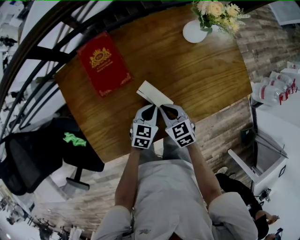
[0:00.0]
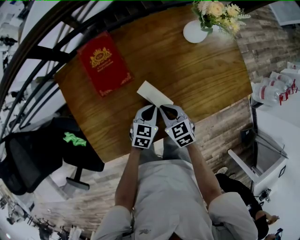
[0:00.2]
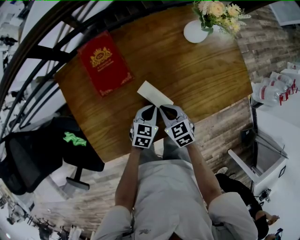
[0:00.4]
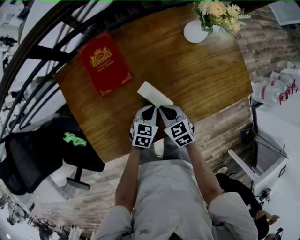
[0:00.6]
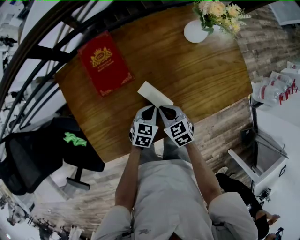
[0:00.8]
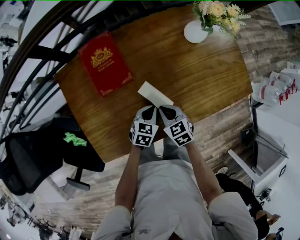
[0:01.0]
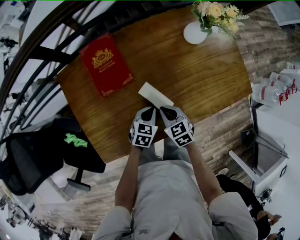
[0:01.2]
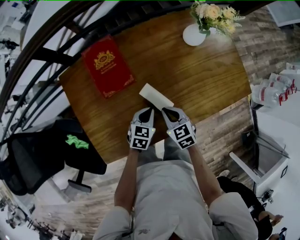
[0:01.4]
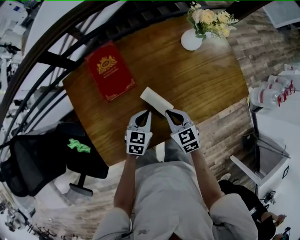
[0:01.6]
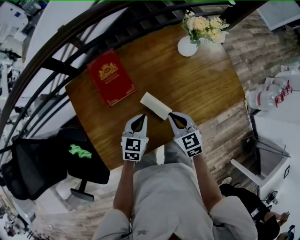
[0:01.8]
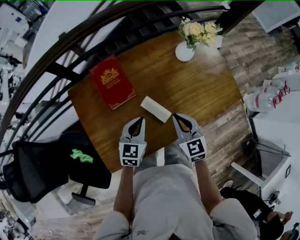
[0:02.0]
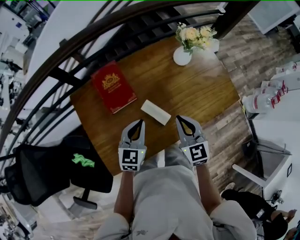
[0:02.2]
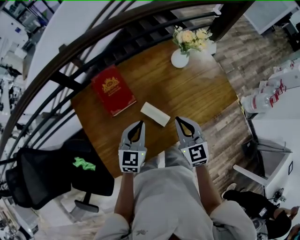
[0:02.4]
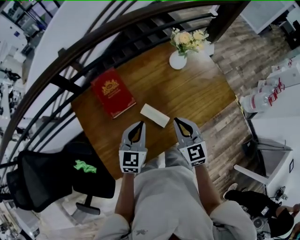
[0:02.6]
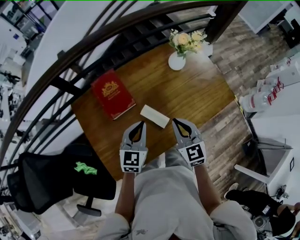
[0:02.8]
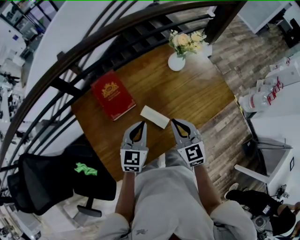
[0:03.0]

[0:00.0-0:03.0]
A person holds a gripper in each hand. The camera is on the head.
0:00.0 to 0:01.6: The left gripper changes place by approximately 5 cm.
0:01.6 to 0:03.0: Both grippers travel together upward, approximately 15 cm. The left gripper turns by roughly 20 degrees, while the right gripper changes its angle by approximately 20 degrees.

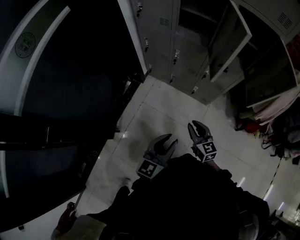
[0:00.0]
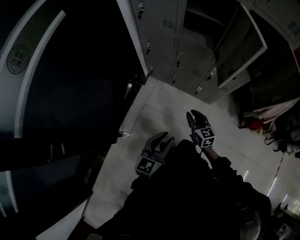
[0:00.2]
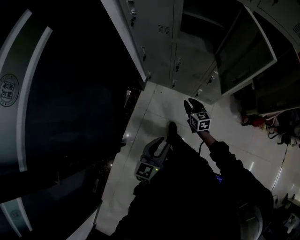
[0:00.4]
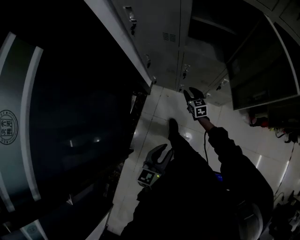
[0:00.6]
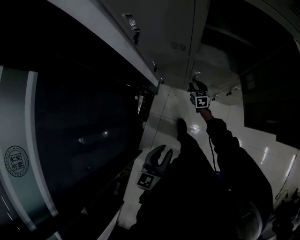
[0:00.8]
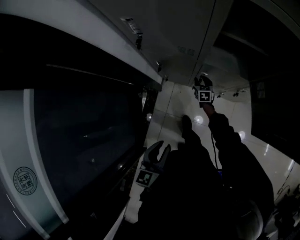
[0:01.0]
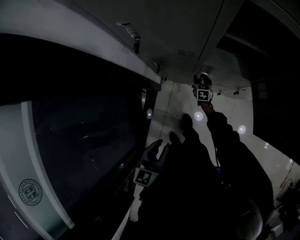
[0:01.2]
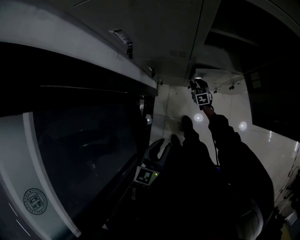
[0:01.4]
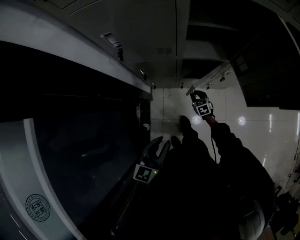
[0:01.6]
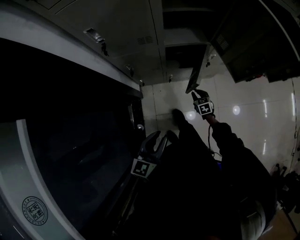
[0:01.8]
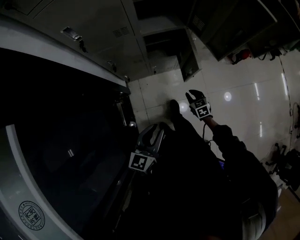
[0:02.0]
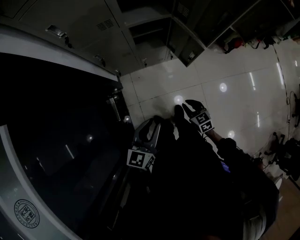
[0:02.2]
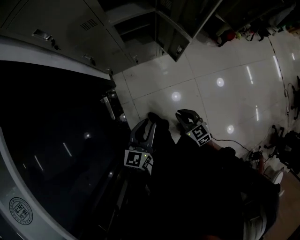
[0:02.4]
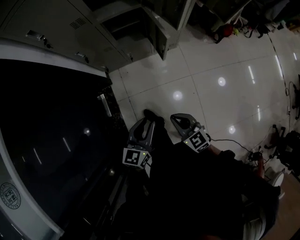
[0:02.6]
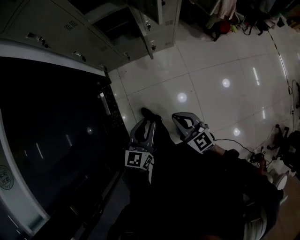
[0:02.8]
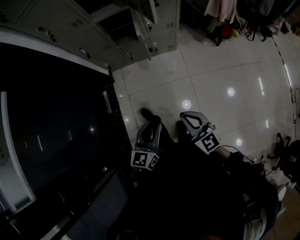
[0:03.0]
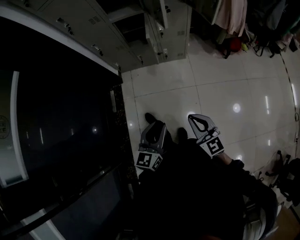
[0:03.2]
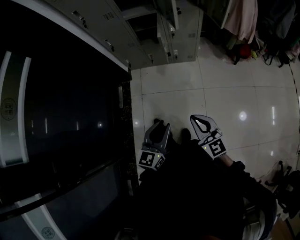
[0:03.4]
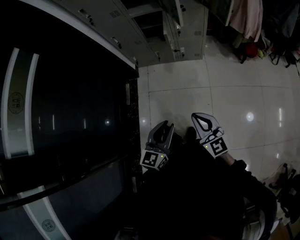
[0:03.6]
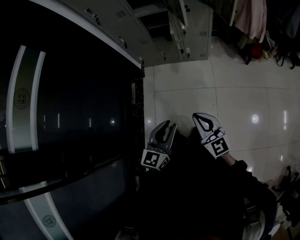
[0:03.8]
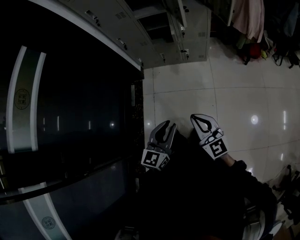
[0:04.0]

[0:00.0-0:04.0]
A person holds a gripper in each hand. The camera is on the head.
0:00.0 to 0:01.4: The pair of grippers is taken forward and to the left, approximately 50 cm. The right gripper goes some 25 cm downward, and changes its angle by roughly 40 degrees.
0:01.4 to 0:02.6: The left gripper goes approximately 30 cm backward and to the right, and rotates about 20 degrees; the right gripper goes approximately 60 cm backward and upward, rotates some 20 degrees, and closes its fingers.
0:02.6 to 0:04.0: The left gripper moves backward and to the right, approximately 25 cm; the right gripper moves backward, upward and to the right, approximately 25 cm, and turns by approximately 30 degrees.

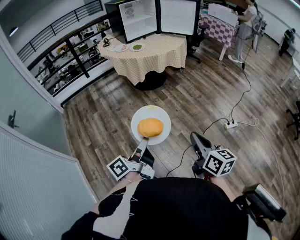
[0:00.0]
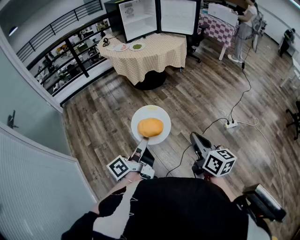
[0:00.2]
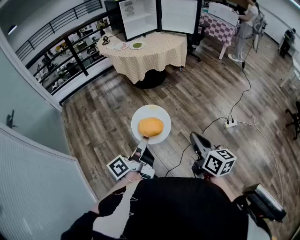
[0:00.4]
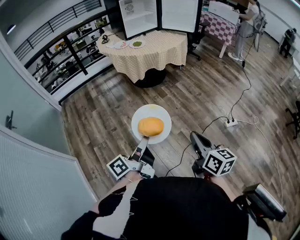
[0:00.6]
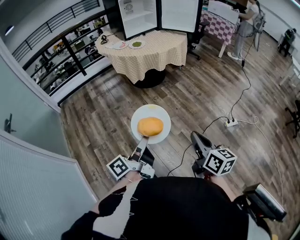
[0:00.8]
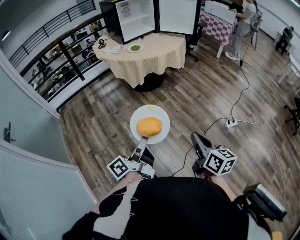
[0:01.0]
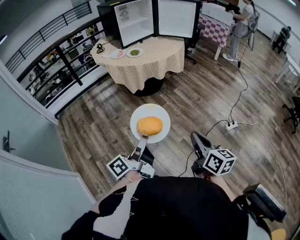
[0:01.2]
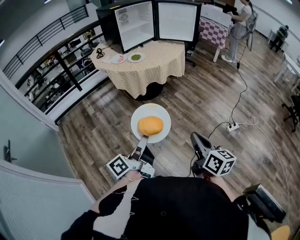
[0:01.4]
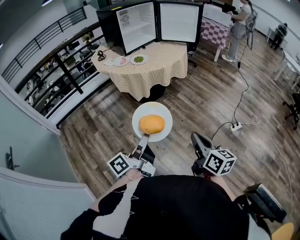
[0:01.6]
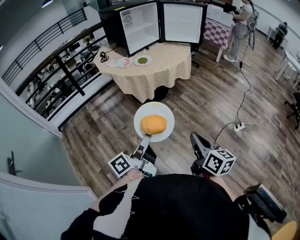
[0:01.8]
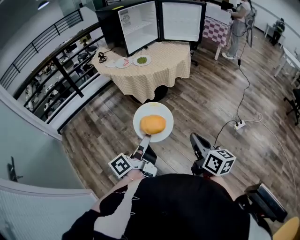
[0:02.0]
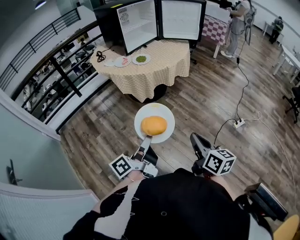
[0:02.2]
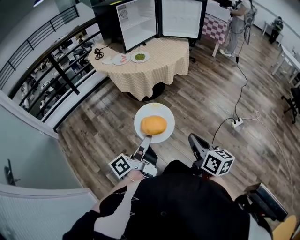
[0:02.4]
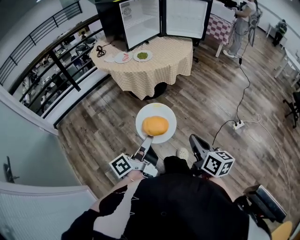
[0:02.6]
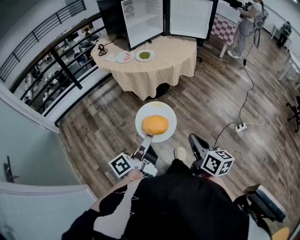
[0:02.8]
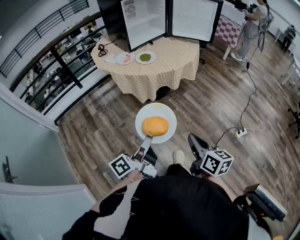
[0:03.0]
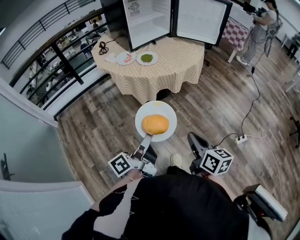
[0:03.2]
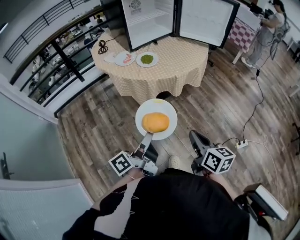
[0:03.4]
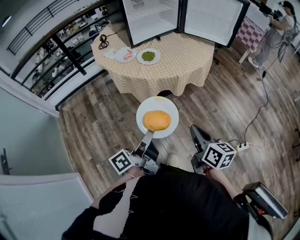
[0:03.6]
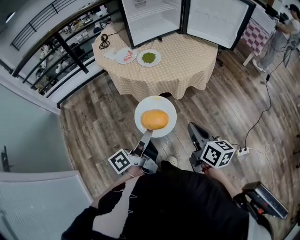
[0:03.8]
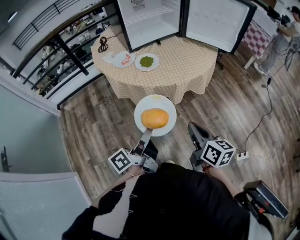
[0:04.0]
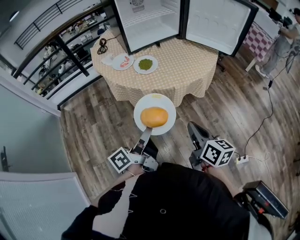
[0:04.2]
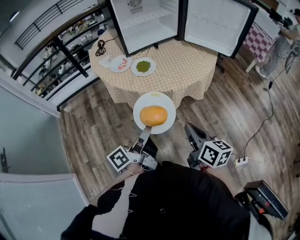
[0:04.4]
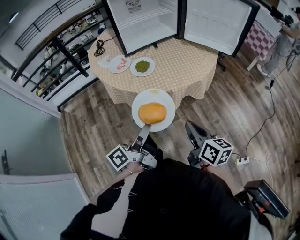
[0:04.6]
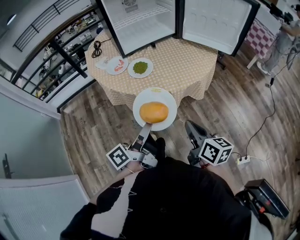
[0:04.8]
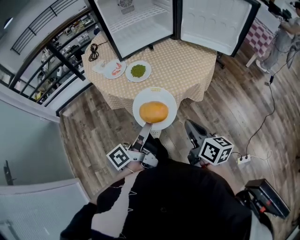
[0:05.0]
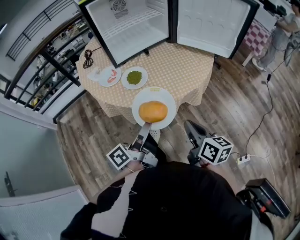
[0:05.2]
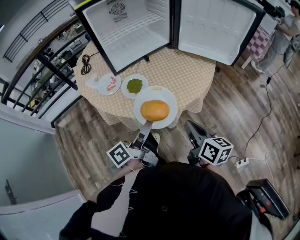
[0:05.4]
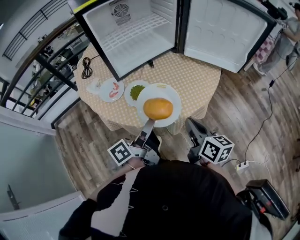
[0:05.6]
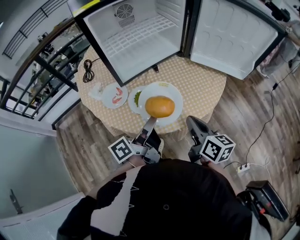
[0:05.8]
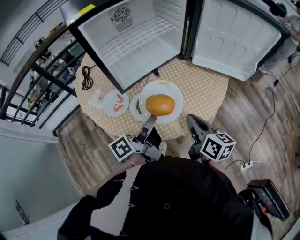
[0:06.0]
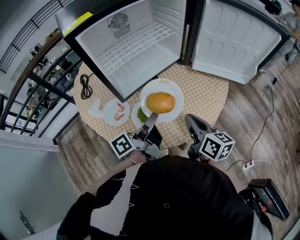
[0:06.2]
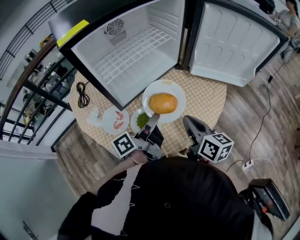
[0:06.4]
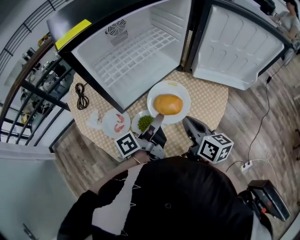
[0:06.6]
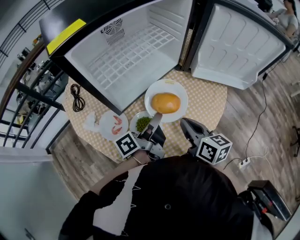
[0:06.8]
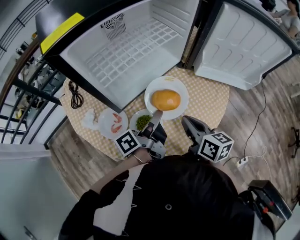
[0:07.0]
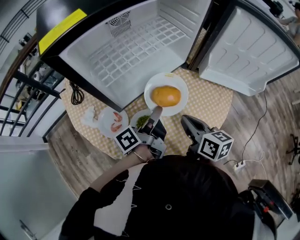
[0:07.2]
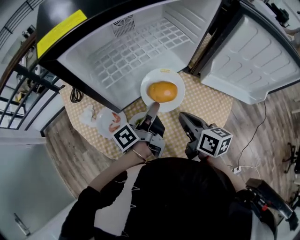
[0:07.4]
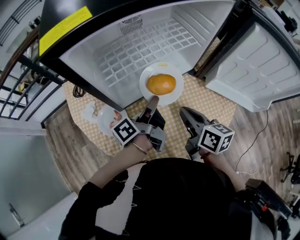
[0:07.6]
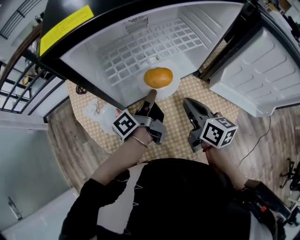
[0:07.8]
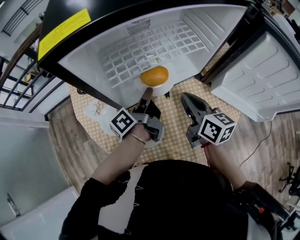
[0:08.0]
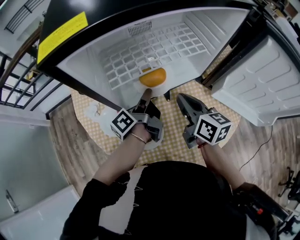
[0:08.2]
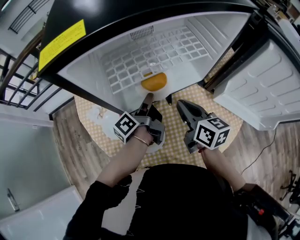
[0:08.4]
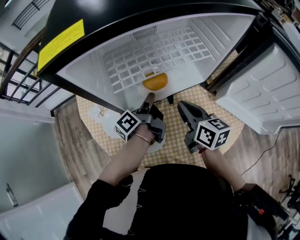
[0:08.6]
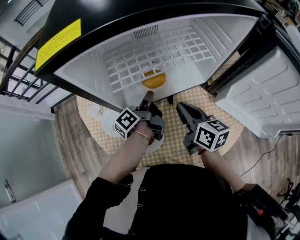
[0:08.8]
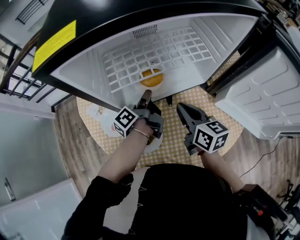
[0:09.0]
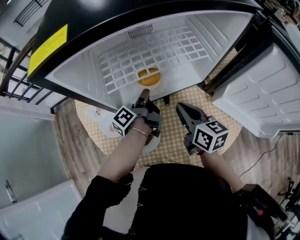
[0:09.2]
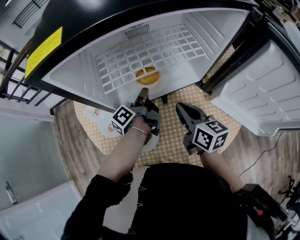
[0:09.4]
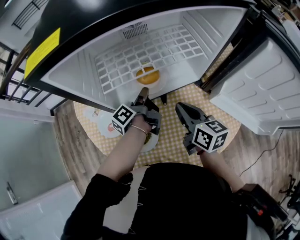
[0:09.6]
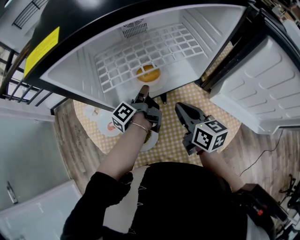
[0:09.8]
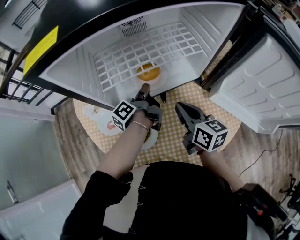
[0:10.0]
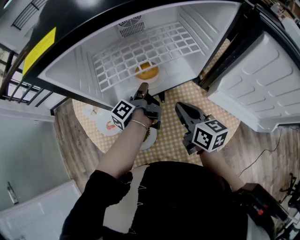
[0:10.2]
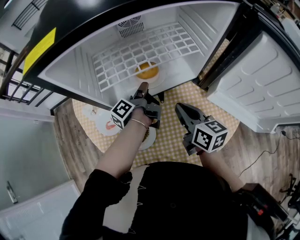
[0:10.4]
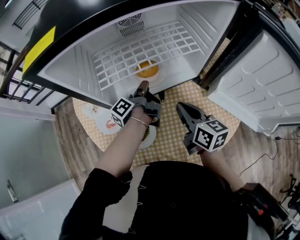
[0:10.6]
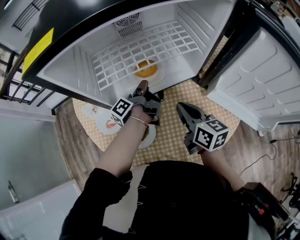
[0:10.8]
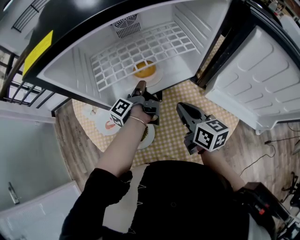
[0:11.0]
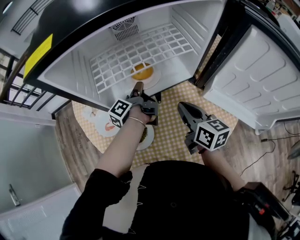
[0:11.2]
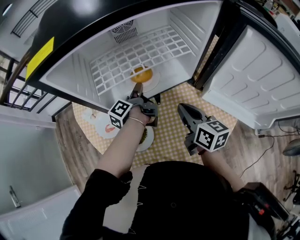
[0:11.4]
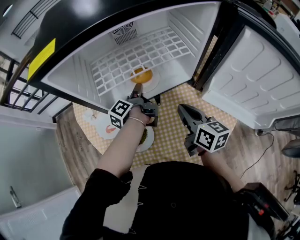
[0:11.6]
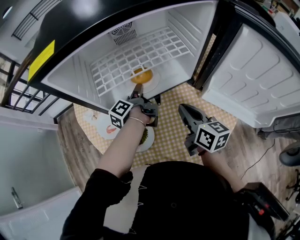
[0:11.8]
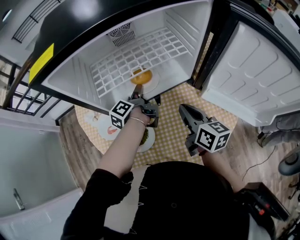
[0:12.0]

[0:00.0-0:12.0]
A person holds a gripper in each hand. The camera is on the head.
0:00.0 to 0:01.6: The right gripper ends up approximately 20 cm from where it was.
0:01.6 to 0:03.0: The right gripper moves some 15 cm.
0:03.0 to 0:04.4: The right gripper moves approximately 30 cm.
0:04.4 to 0:06.0: The right gripper ends up roughly 30 cm from where it was.
0:06.0 to 0:07.6: The right gripper ends up roughly 20 cm from where it was.
0:07.6 to 0:09.0: The right gripper shifts by roughly 5 cm.

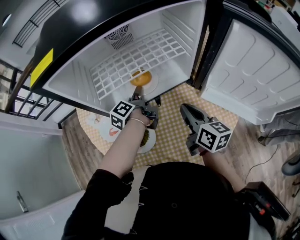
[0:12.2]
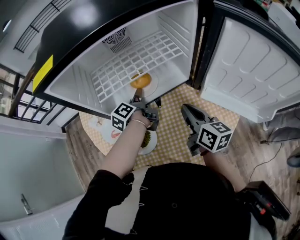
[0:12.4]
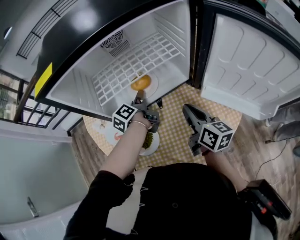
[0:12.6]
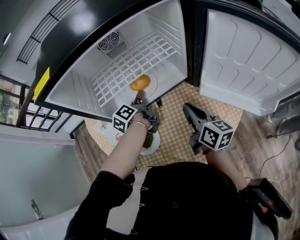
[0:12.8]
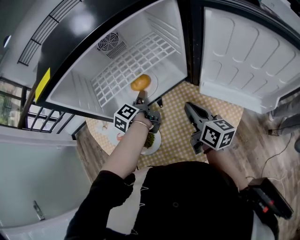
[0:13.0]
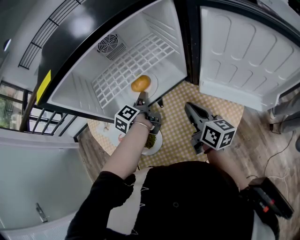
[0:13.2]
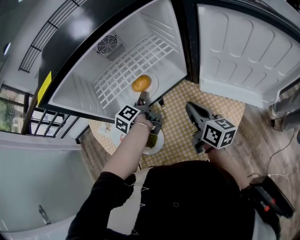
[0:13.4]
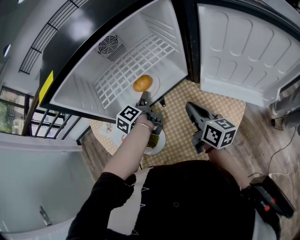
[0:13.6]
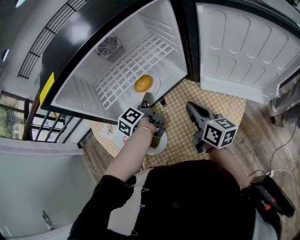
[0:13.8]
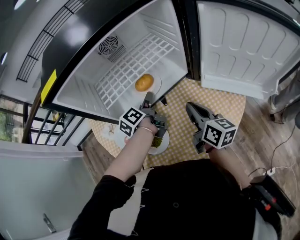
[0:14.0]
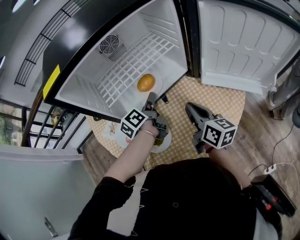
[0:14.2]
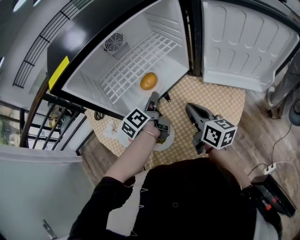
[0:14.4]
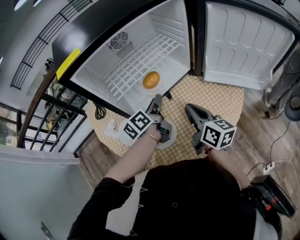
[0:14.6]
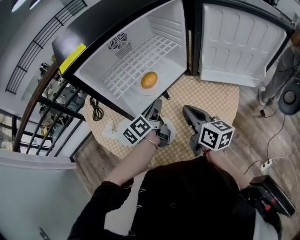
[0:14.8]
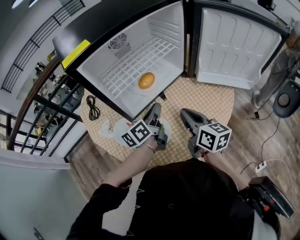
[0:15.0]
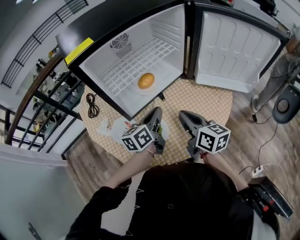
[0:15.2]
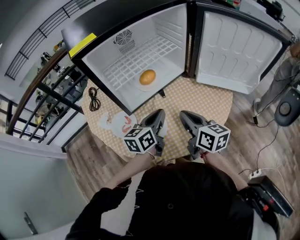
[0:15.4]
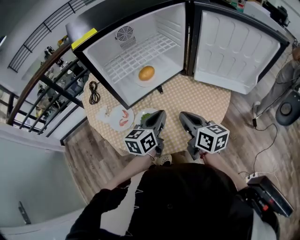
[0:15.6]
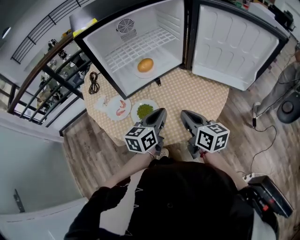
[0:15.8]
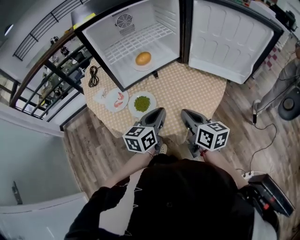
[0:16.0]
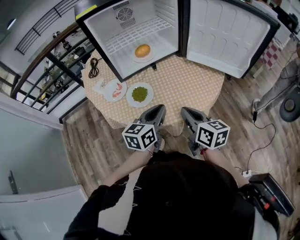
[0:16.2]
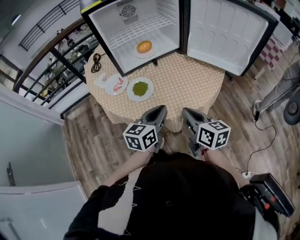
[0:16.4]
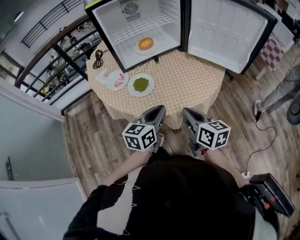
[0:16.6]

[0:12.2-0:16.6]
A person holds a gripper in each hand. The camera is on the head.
0:13.6 to 0:15.2: The right gripper moves some 15 cm.
0:15.2 to 0:16.6: The right gripper changes place by roughly 20 cm.
